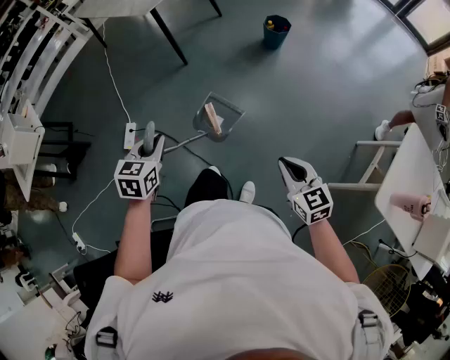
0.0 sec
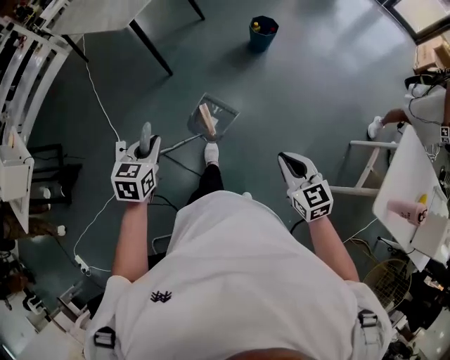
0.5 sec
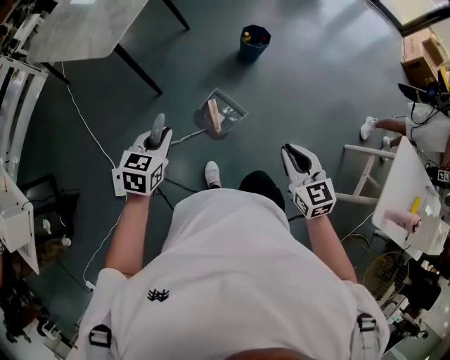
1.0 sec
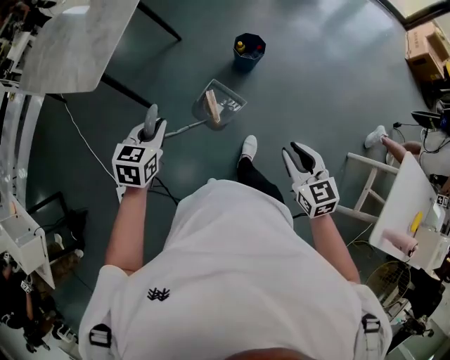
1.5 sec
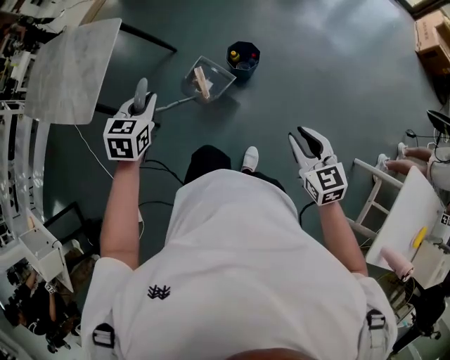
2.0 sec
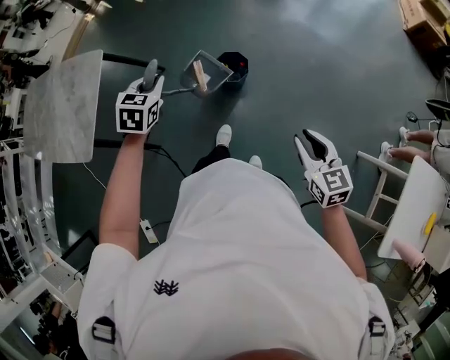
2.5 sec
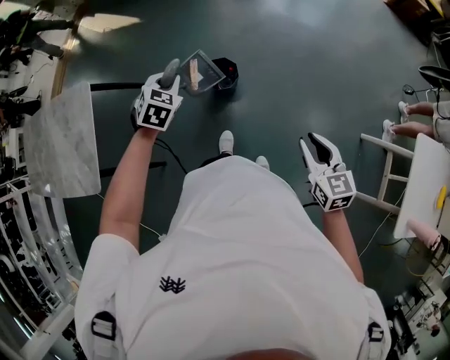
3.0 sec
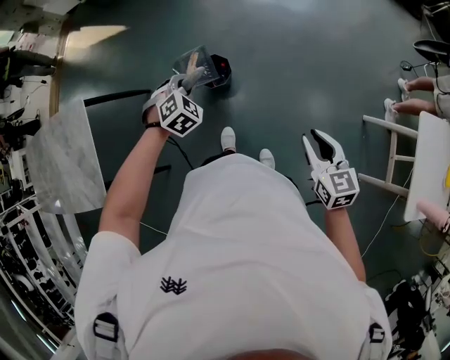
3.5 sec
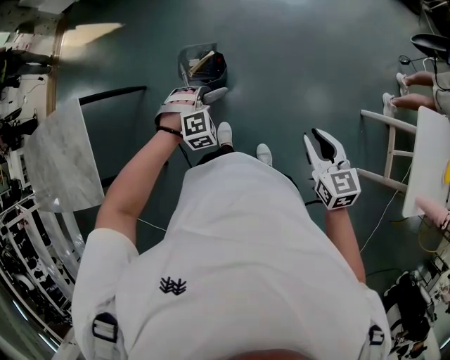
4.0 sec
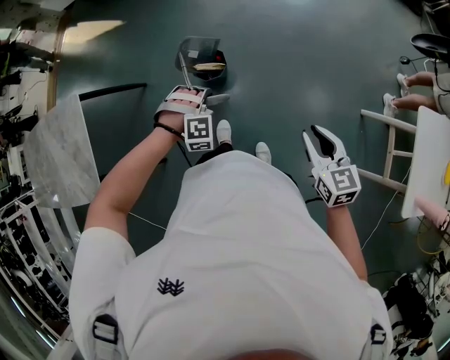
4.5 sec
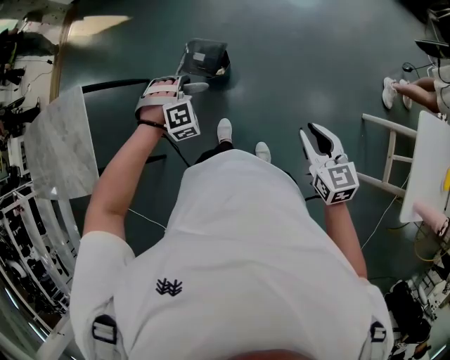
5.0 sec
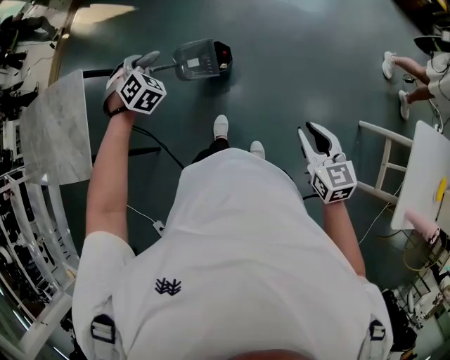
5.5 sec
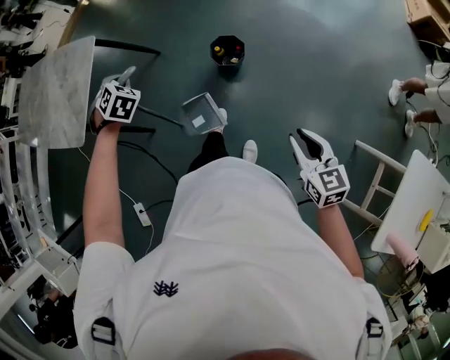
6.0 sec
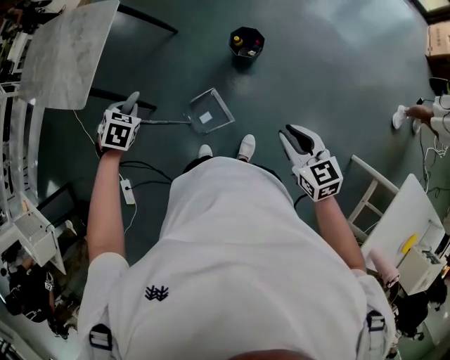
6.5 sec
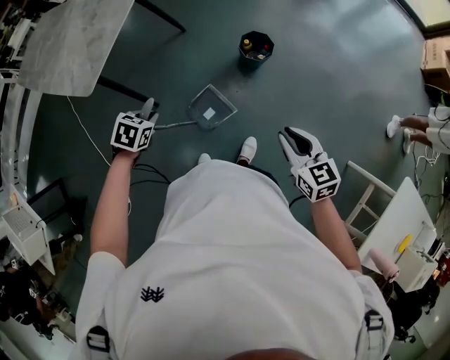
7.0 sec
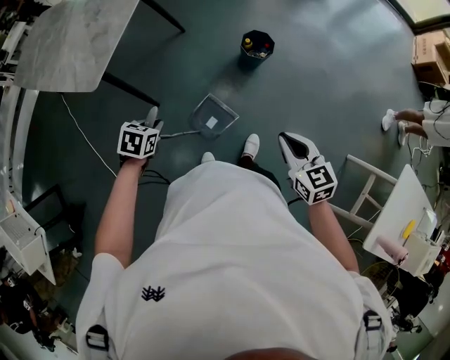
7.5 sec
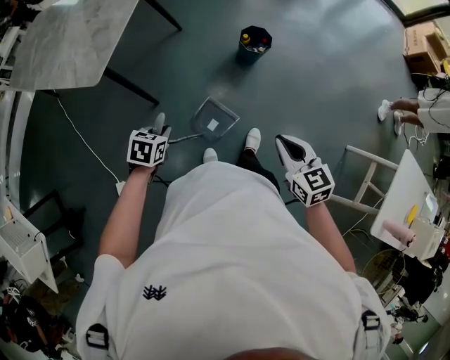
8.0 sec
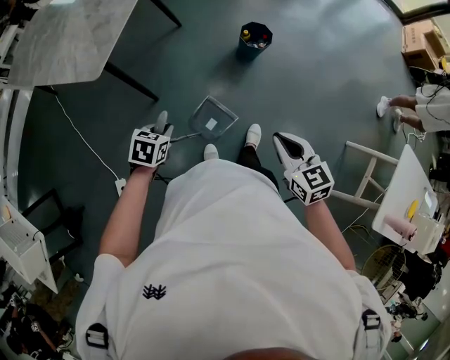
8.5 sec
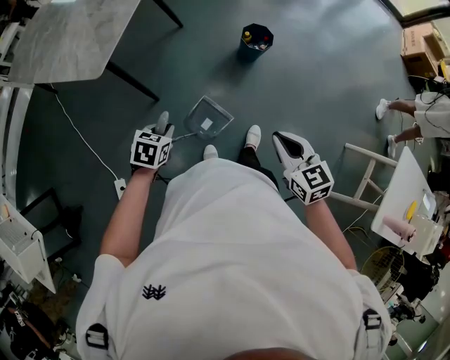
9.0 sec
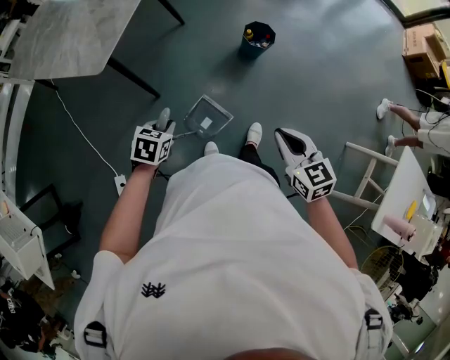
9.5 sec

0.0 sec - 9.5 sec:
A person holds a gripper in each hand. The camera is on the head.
0.0 sec - 2.0 sec: Both grippers are carried forward, some 70 cm. The left gripper changes its angle by some 20 degrees. The right gripper opens up.
2.0 sec - 4.0 sec: The left gripper moves to the right, downward and forward, about 35 cm, and rolls clockwise, seen from behind, by some 80 degrees. Meanwhile the right gripper moves to the right, approximately 10 cm, and turns by about 30 degrees.
4.0 sec - 5.5 sec: The left gripper shifts about 25 cm to the left, upward and forward, and turns by about 40 degrees.
5.5 sec - 7.5 sec: The left gripper goes some 50 cm to the left and backward, and twists about 60 degrees counterclockwise, seen from behind, while the right gripper is displaced to the left by some 25 cm, and rotates approximately 30 degrees.
7.5 sec - 9.5 sec: The left gripper goes about 10 cm backward; the right gripper goes about 10 cm to the left and backward.

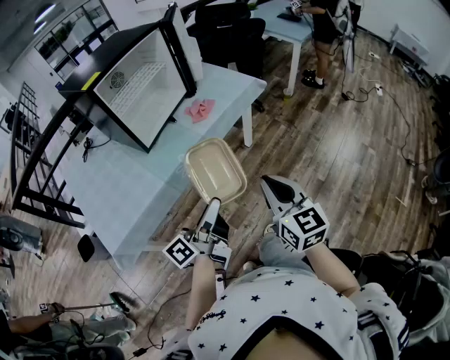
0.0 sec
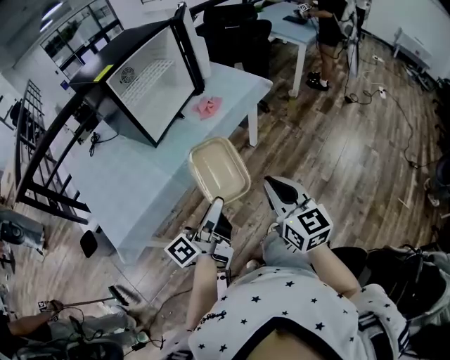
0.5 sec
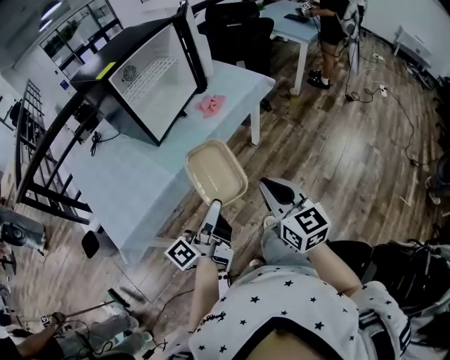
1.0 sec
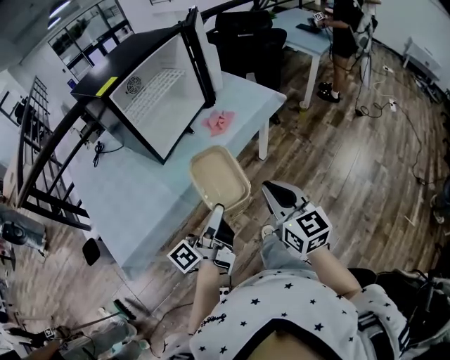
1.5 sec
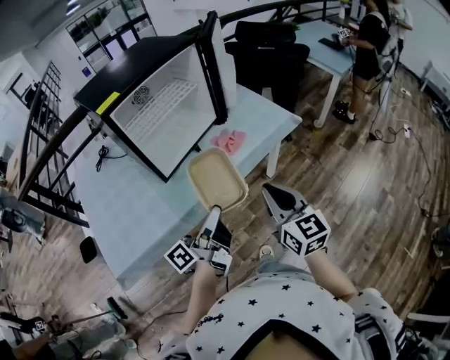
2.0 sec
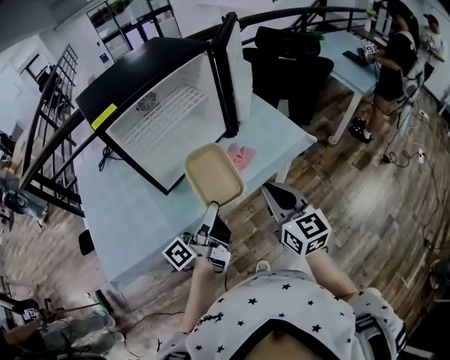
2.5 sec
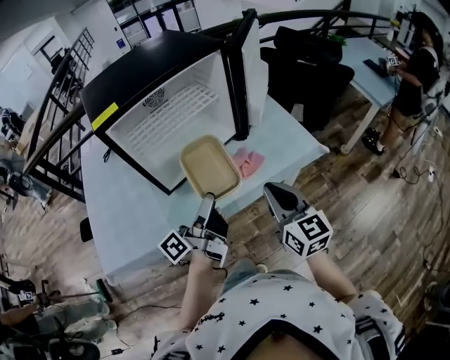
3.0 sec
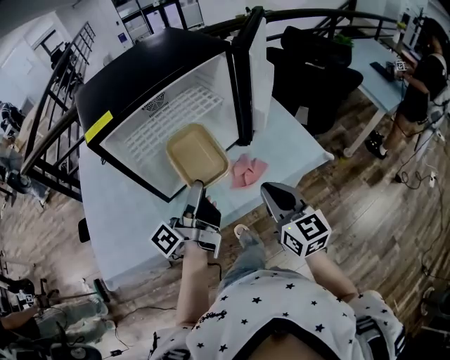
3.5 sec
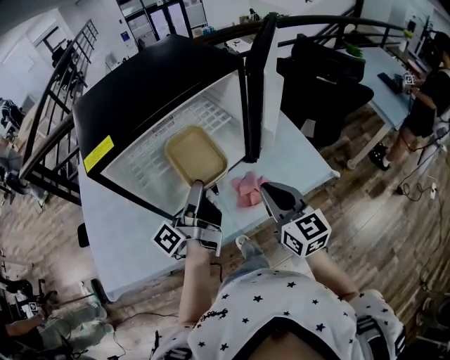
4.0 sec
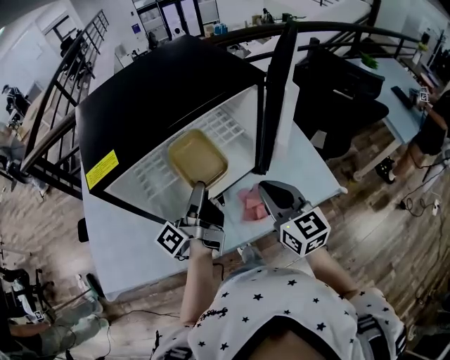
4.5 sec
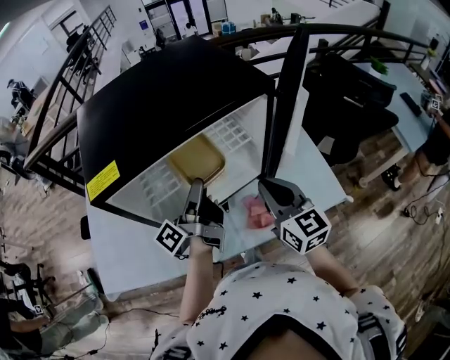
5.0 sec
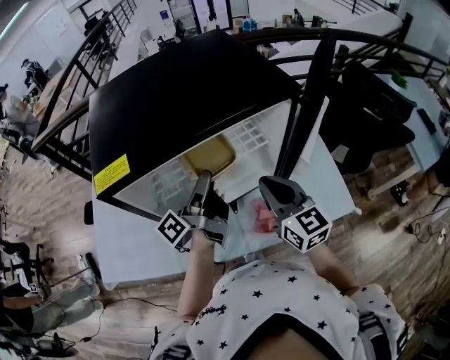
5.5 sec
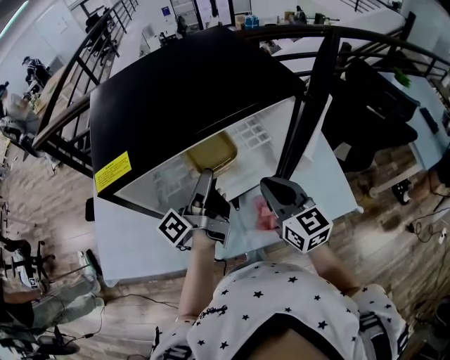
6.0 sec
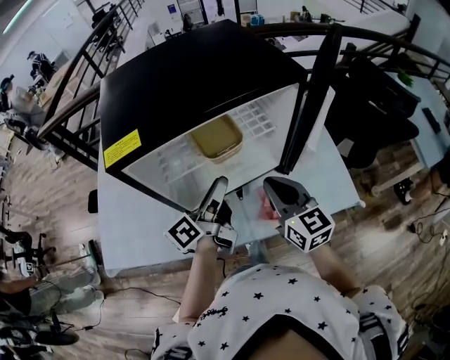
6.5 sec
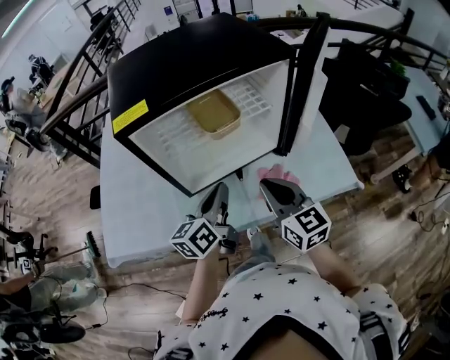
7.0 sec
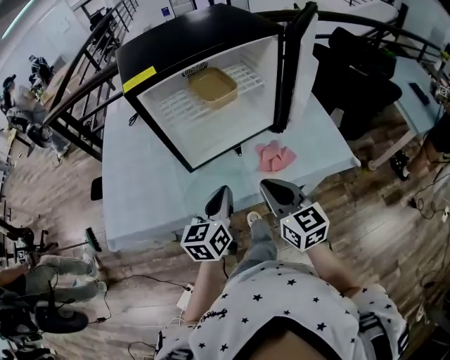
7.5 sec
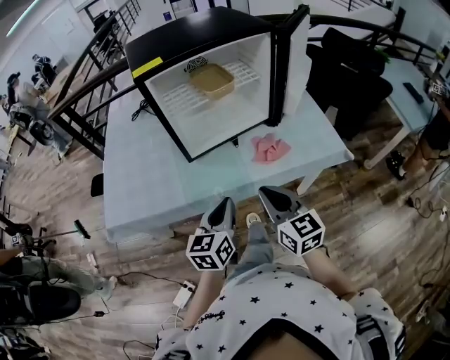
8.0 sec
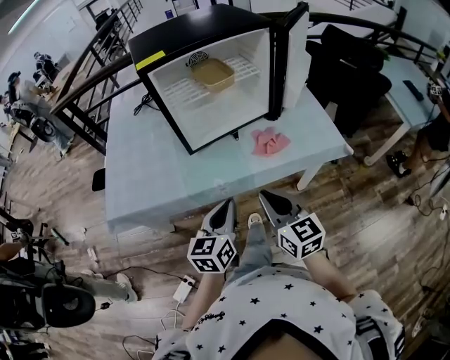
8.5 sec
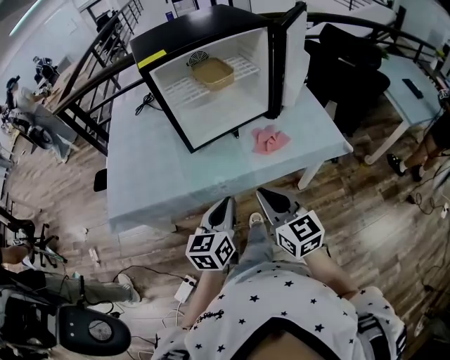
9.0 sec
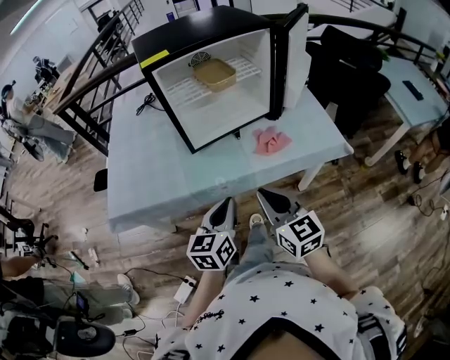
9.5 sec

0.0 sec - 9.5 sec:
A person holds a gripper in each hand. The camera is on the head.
0.0 sec - 2.0 sec: The grippers both shift forward by about 15 cm.
2.0 sec - 4.0 sec: The two grippers go some 30 cm forward. The left gripper rotates some 20 degrees.
4.0 sec - 5.5 sec: The grippers both shift forward by roughly 10 cm.
5.5 sec - 7.5 sec: The two grippers go approximately 20 cm backward. The left gripper rolls clockwise, seen from behind, by about 60 degrees, and closes up.
7.5 sec - 9.5 sec: Both grippers travel together backward, some 10 cm.

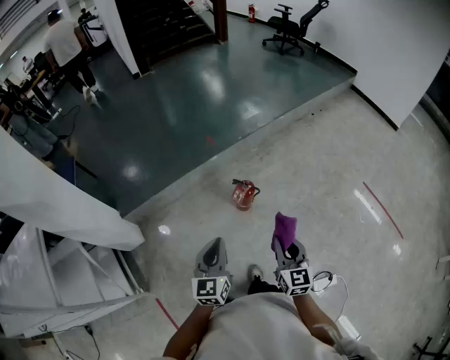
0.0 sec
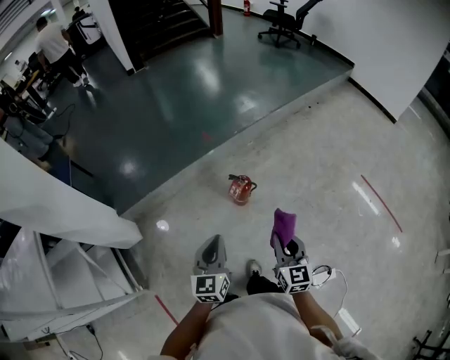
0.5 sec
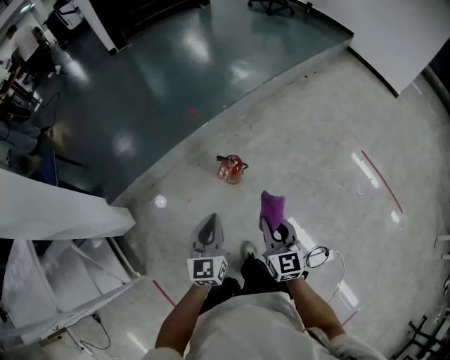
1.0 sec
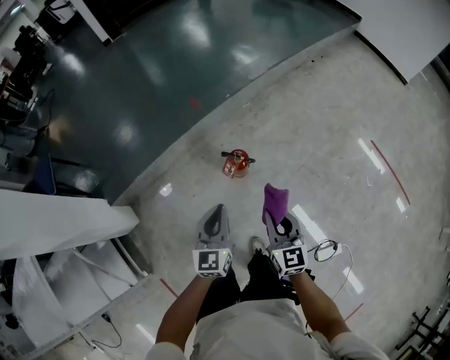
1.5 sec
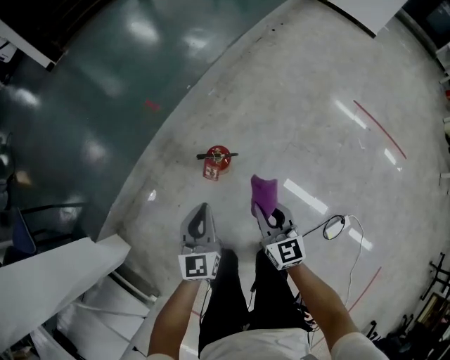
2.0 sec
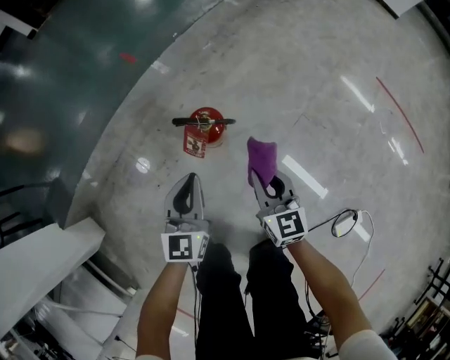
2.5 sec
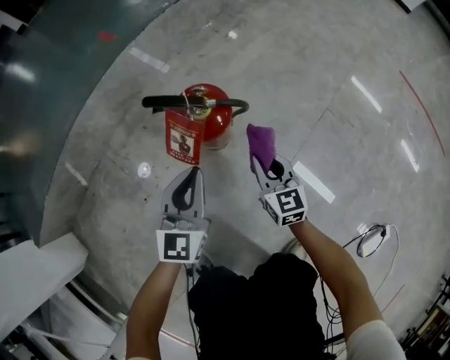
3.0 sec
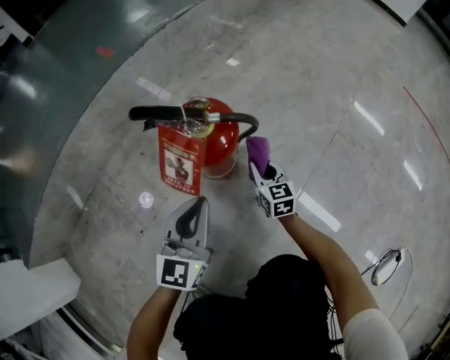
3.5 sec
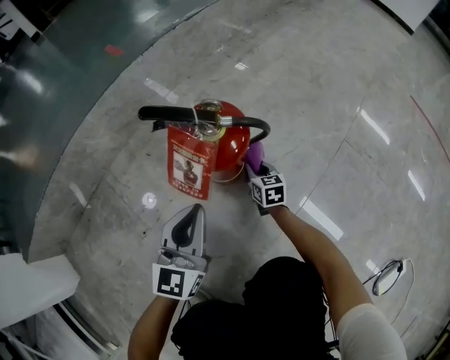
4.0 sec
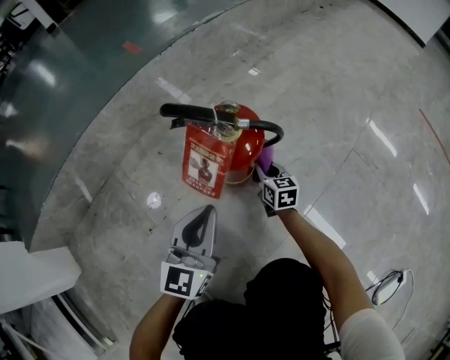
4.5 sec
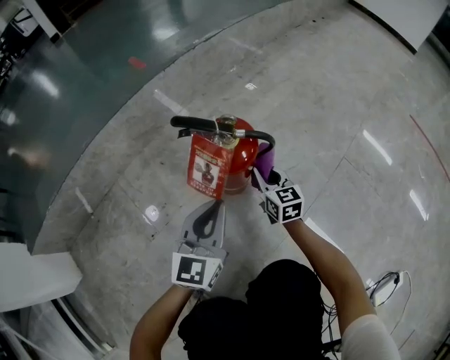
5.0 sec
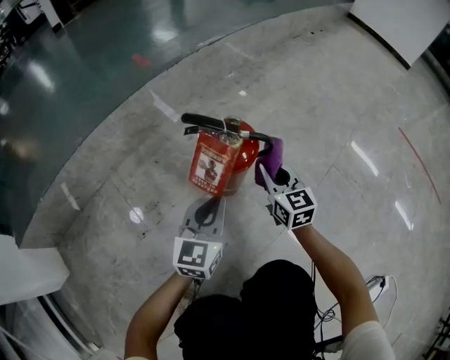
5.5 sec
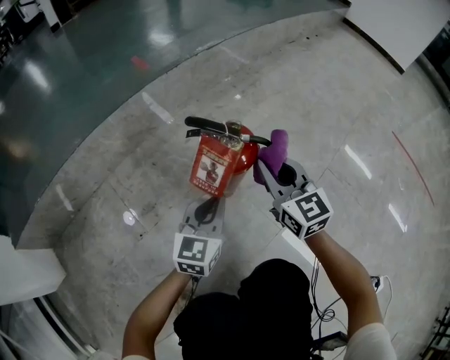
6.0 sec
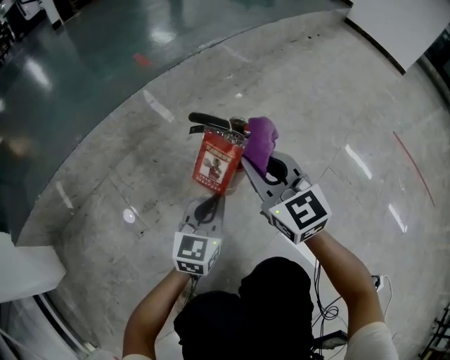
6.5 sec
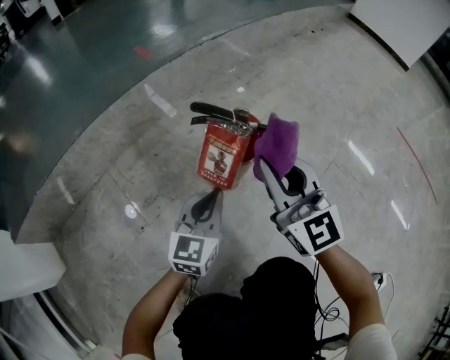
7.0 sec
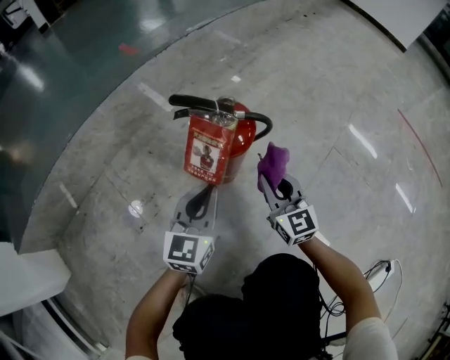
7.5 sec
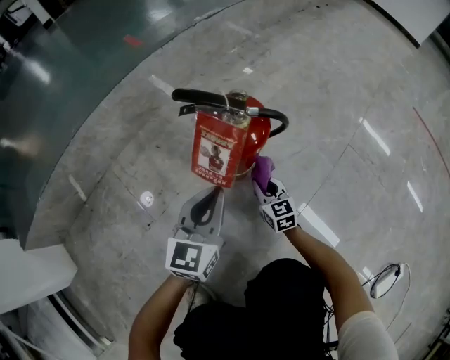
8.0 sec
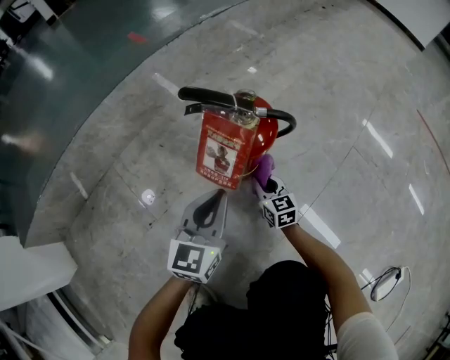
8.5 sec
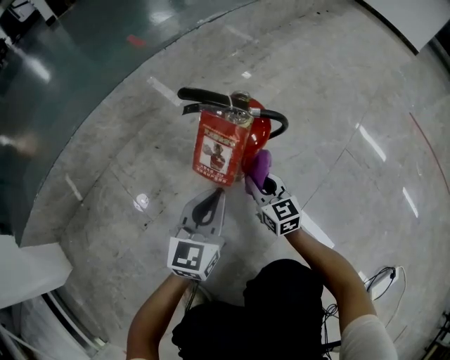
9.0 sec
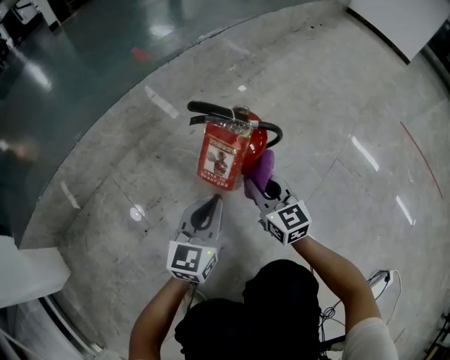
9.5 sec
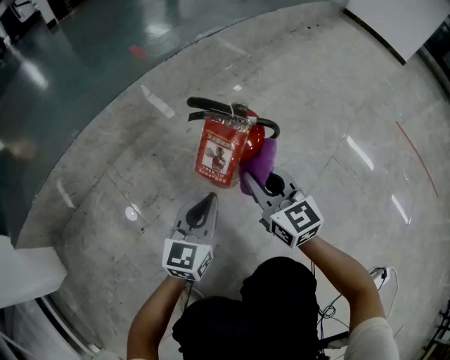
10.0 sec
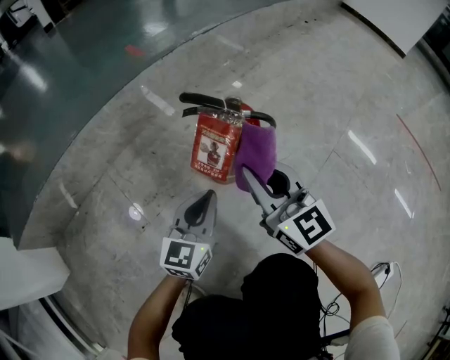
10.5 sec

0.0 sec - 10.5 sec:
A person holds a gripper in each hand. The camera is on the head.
0.0 sec - 2.0 sec: The right gripper heads downward and forward, covering some 30 cm. Meanwhile the left gripper heads forward and downward, covering some 30 cm.
2.0 sec - 4.0 sec: Both grippers move downward, approximately 60 cm. The right gripper swivels roughly 20 degrees.
4.0 sec - 6.5 sec: The right gripper travels upward by some 40 cm, and rotates approximately 40 degrees.
6.5 sec - 8.5 sec: The right gripper heads downward, covering roughly 35 cm, and swivels roughly 30 degrees.
8.5 sec - 10.5 sec: The right gripper goes approximately 35 cm upward, and rotates about 30 degrees.
